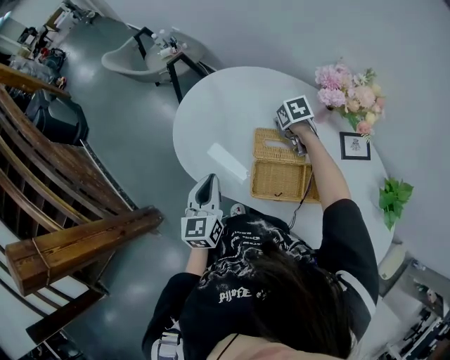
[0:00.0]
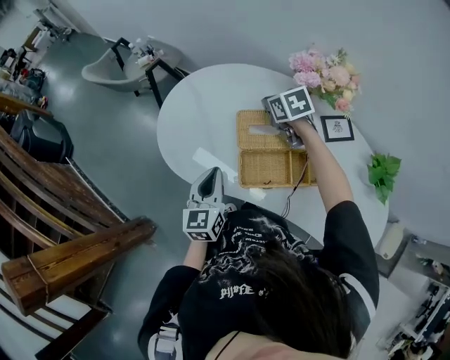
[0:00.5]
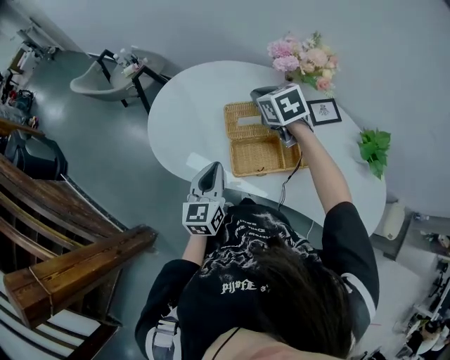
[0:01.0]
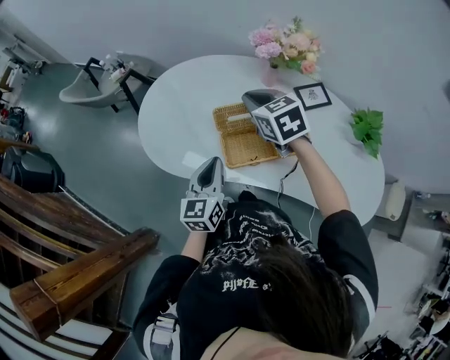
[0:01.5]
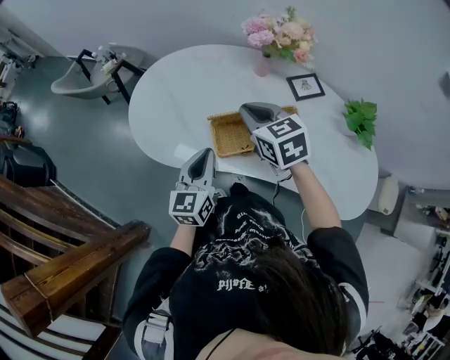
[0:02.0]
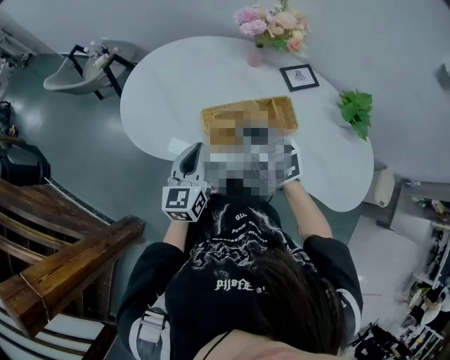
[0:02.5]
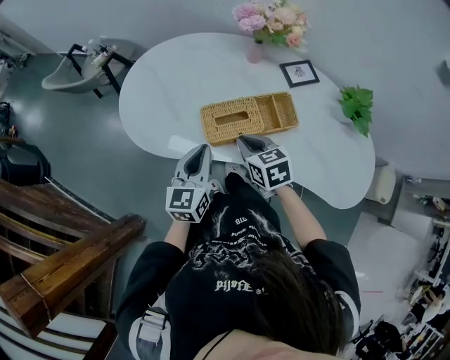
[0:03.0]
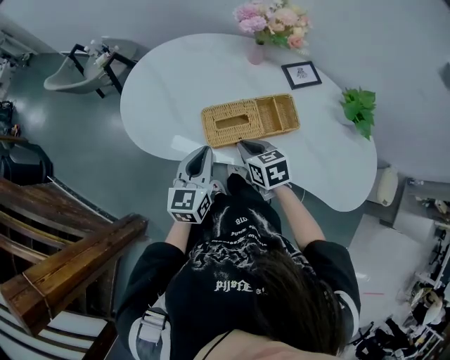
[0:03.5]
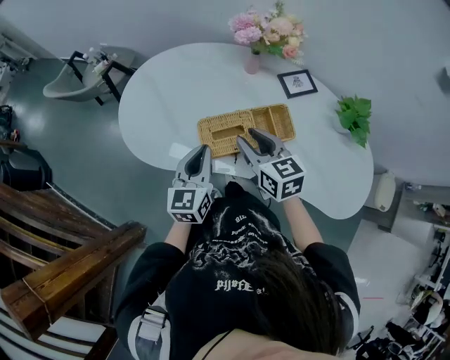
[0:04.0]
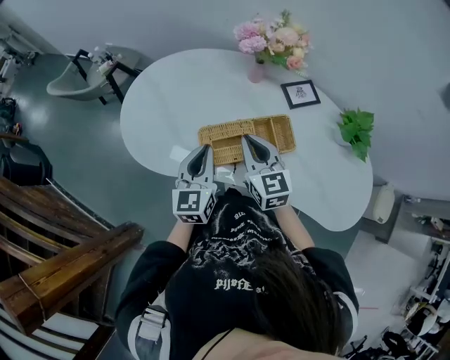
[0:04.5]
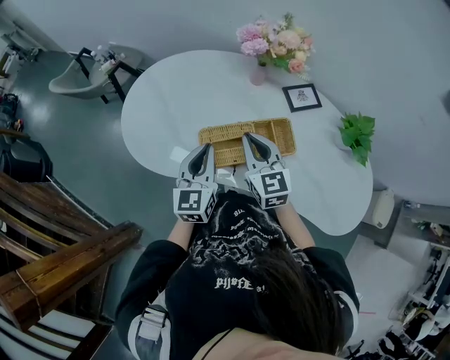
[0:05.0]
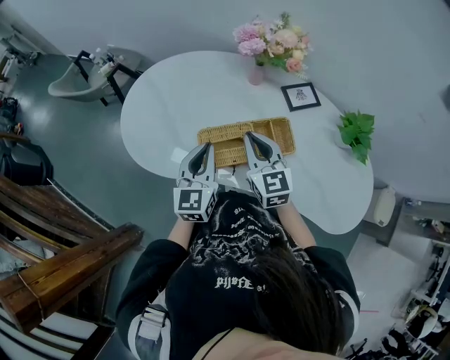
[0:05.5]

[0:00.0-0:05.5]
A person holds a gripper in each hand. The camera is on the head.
0:00.0 to 0:02.0: The left gripper moves roughly 10 cm, and changes its angle by approximately 30 degrees; the right gripper moves roughly 30 cm, and tips its fingers upward by about 30 degrees.
0:02.0 to 0:03.5: The right gripper shifts roughly 20 cm downward and backward.
0:03.5 to 0:05.5: The right gripper shifts some 15 cm upward and forward, rotates approximately 30 degrees, and opens, then closes again. The left gripper goes about 5 cm forward.

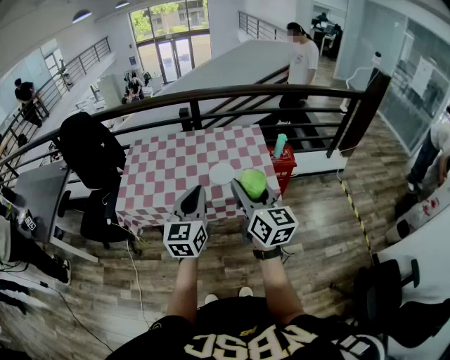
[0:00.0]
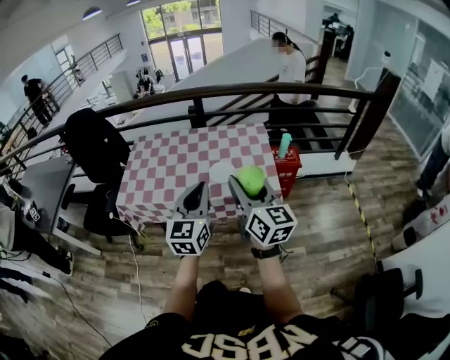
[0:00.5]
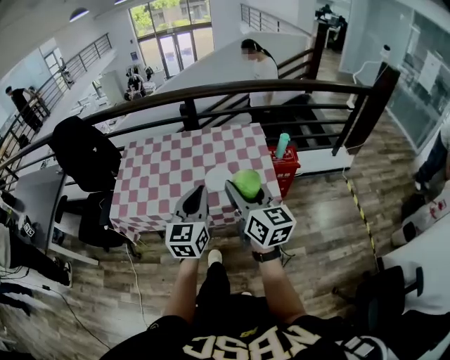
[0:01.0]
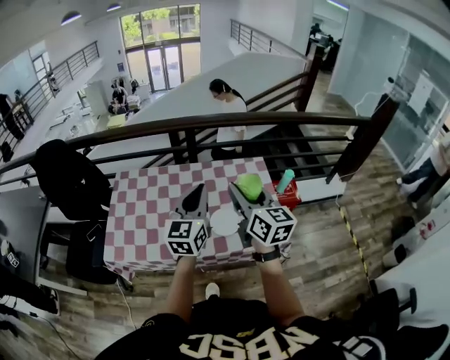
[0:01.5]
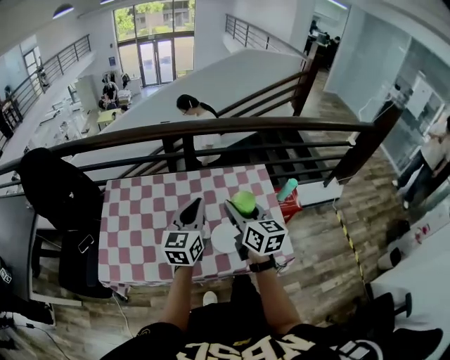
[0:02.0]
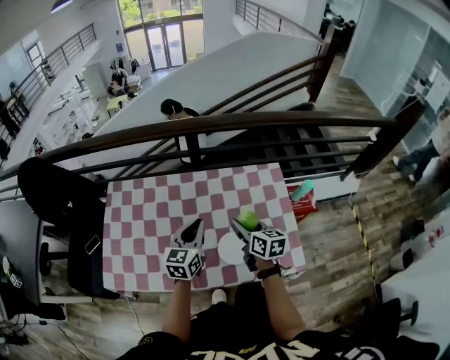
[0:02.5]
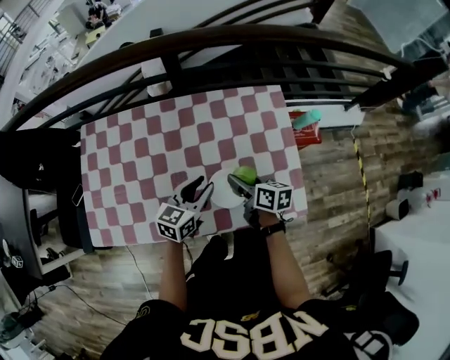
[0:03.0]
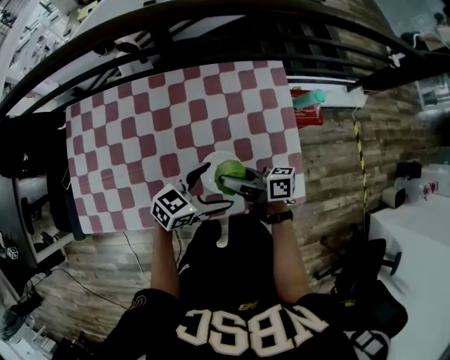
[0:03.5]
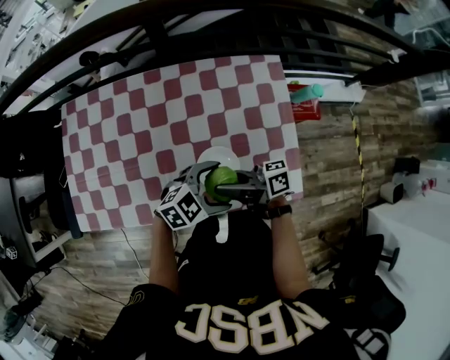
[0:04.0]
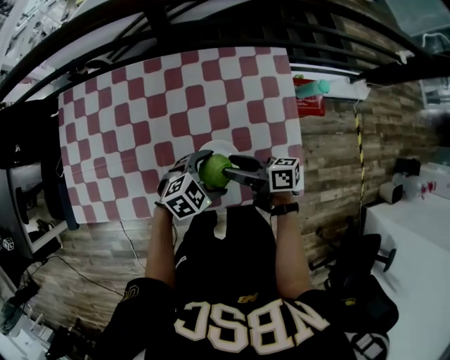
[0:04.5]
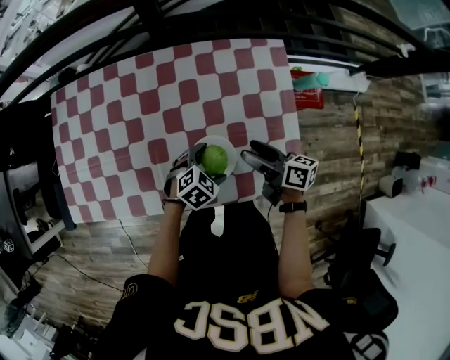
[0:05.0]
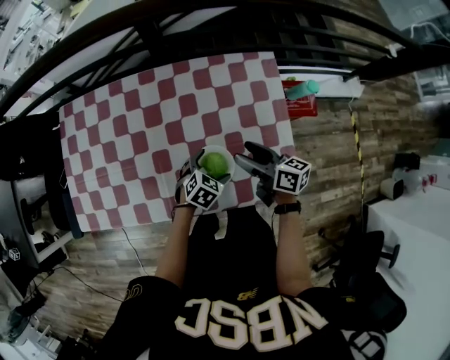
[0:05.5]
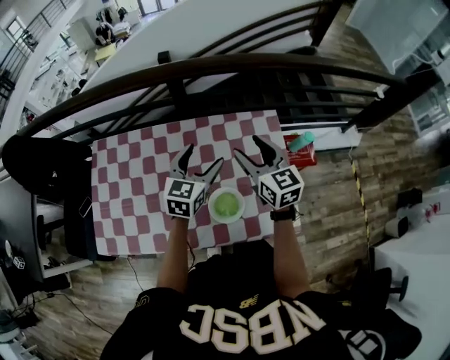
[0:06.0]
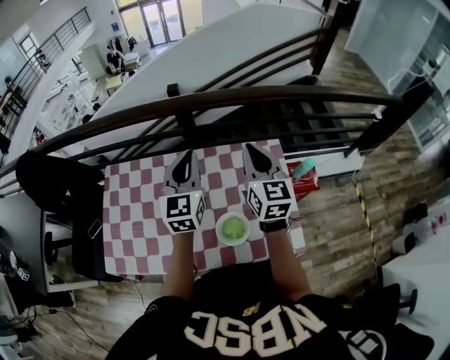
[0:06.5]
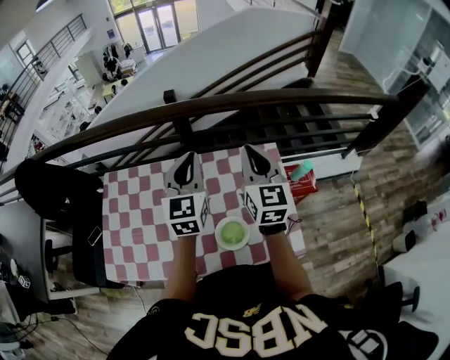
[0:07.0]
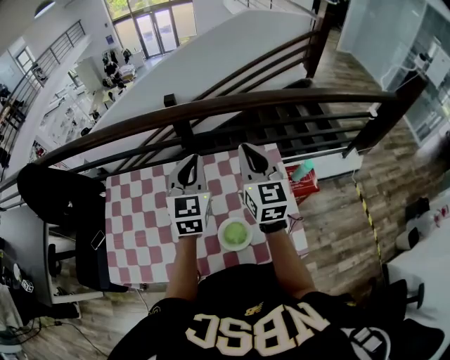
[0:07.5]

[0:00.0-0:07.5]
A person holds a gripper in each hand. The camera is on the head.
0:00.0 to 0:02.0: The two grippers go some 35 cm forward.
0:02.0 to 0:04.0: Both grippers move downward, some 20 cm. The right gripper rotates approximately 70 degrees. The left gripper points its fingers about 30 degrees further downward, and opens its fingers.
0:04.0 to 0:05.5: The right gripper shifts by about 15 cm, changes its angle by some 40 degrees, and opens. Meanwhile the left gripper shifts some 10 cm downward, and turns by approximately 30 degrees.
0:05.5 to 0:07.5: The grippers both shift upward by approximately 35 cm. The right gripper swivels roughly 60 degrees, and closes its fingers; the left gripper angles its fingers upward, by some 50 degrees, and closes its fingers.

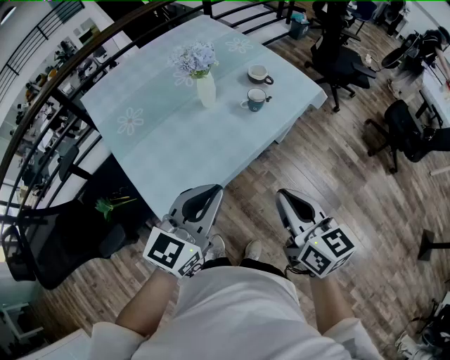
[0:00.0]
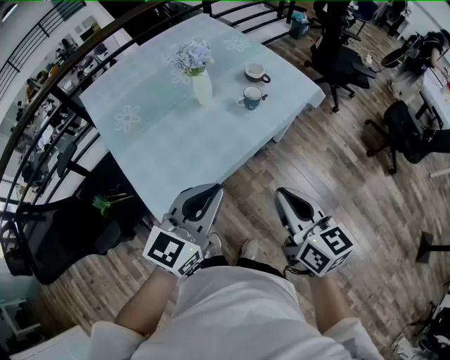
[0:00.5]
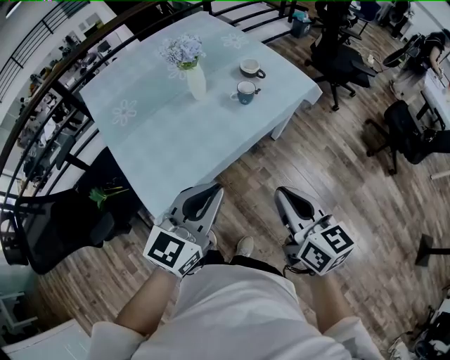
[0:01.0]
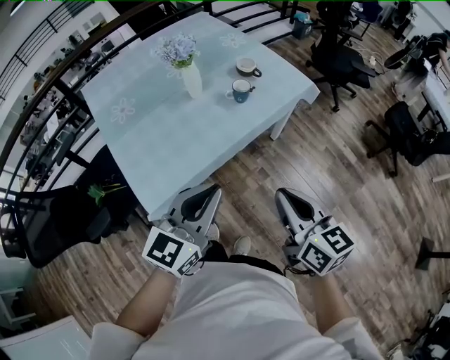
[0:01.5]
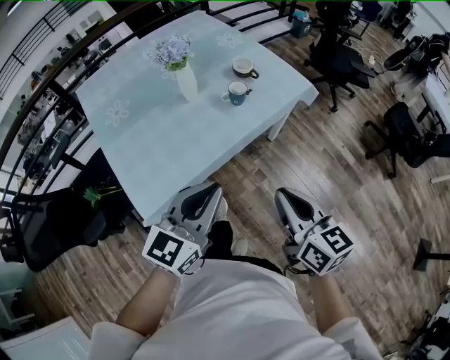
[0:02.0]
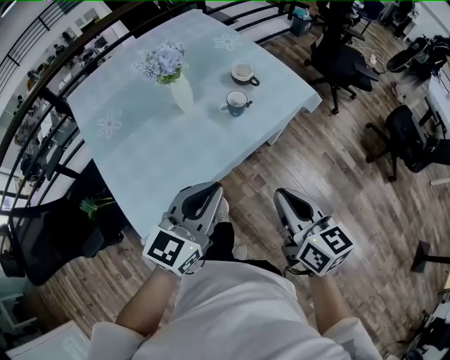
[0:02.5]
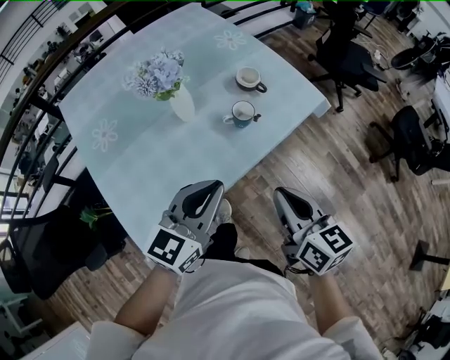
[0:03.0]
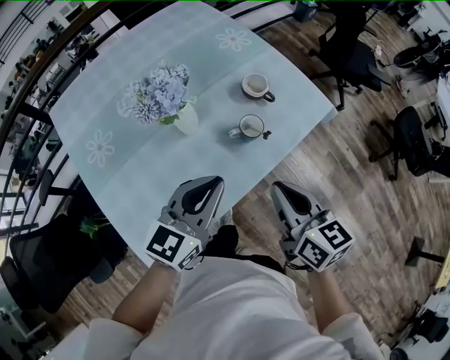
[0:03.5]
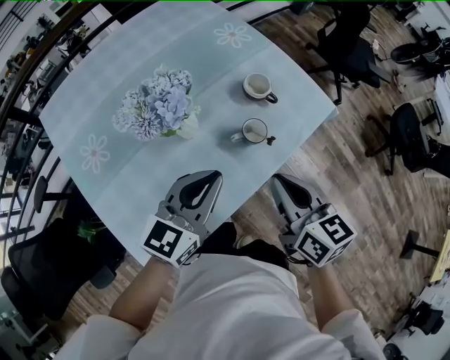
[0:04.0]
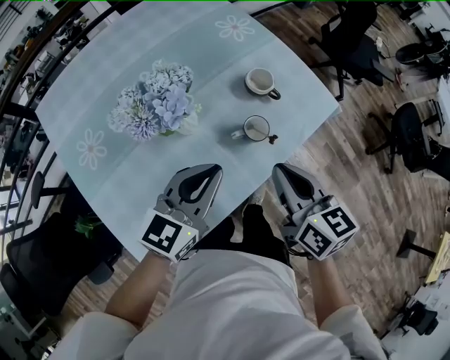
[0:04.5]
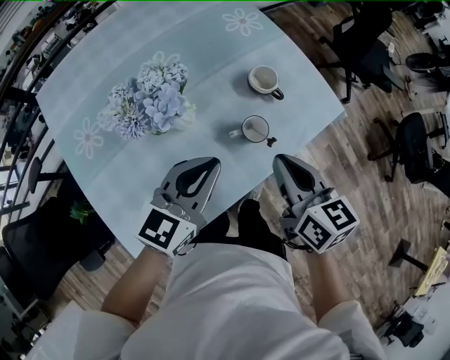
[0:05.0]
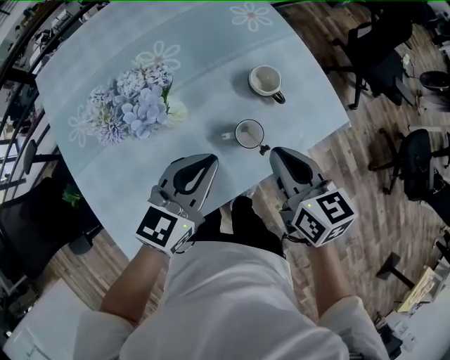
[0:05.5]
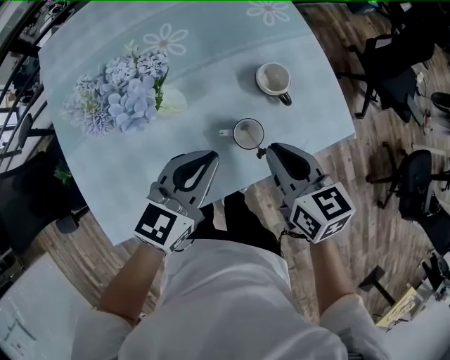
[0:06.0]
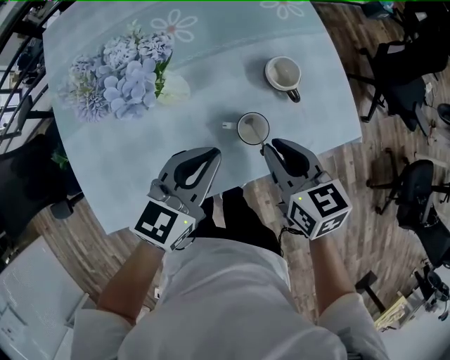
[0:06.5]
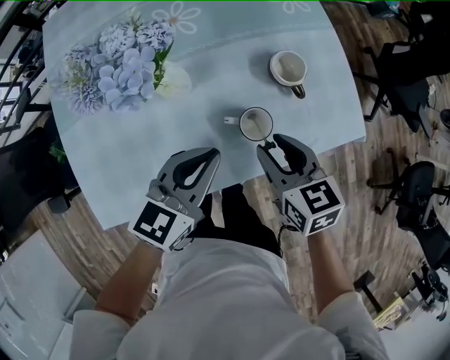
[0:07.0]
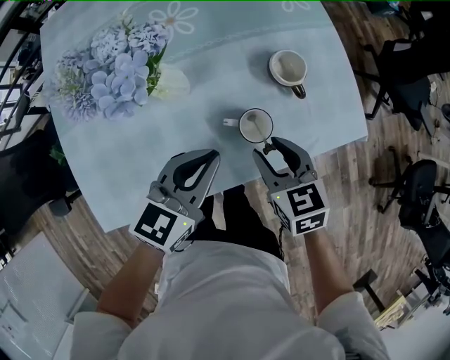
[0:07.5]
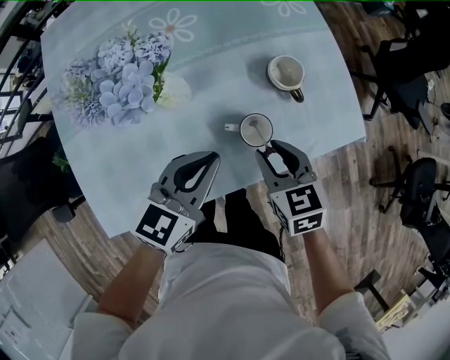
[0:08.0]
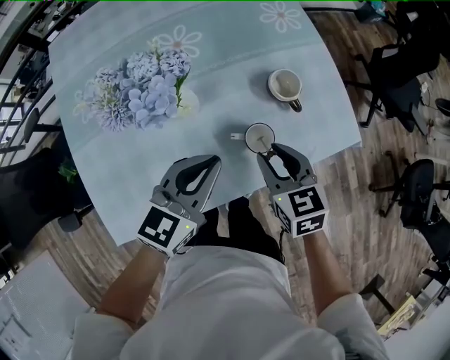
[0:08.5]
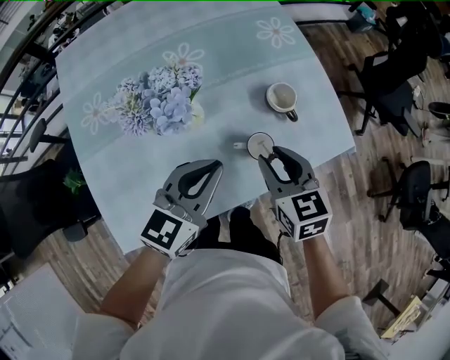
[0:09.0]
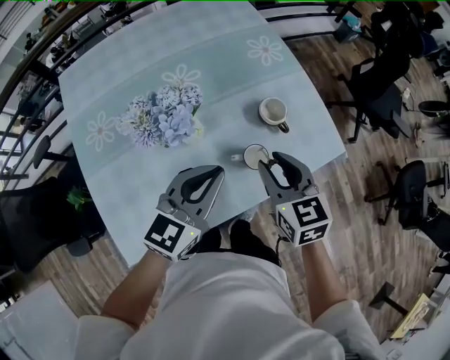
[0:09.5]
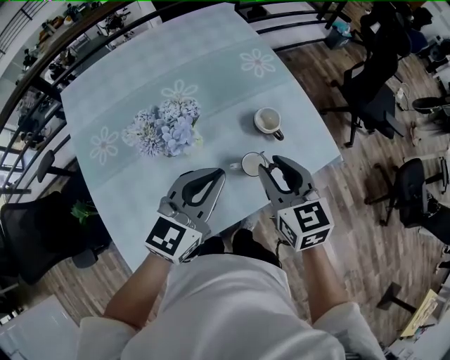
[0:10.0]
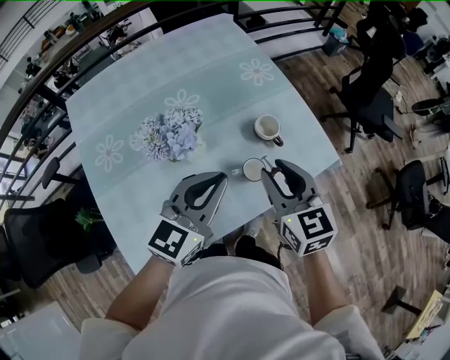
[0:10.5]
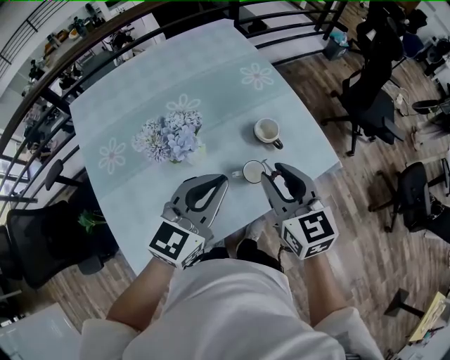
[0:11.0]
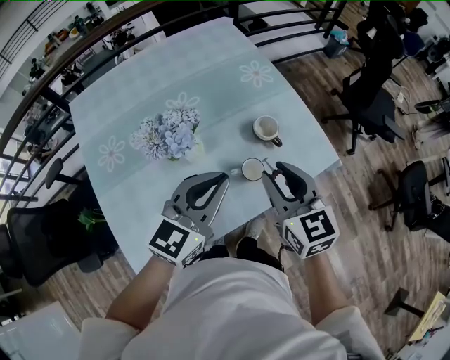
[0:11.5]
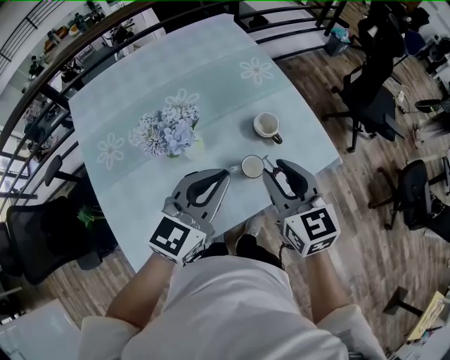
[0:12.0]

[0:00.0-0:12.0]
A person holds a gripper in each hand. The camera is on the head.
0:00.0 to 0:02.0: Both grippers move to the right, about 10 cm.
0:02.0 to 0:04.0: Both grippers travel together forward, approximately 30 cm.
0:04.0 to 0:06.0: Both grippers move forward and downward, approximately 15 cm. The right gripper swivels about 20 degrees.
0:06.0 to 0:08.0: The right gripper goes approximately 10 cm downward, and opens its fingers.
0:08.0 to 0:10.0: The grippers both shift upward by about 15 cm. The right gripper turns by approximately 20 degrees.
0:10.0 to 0:12.0: The grippers move only a little.

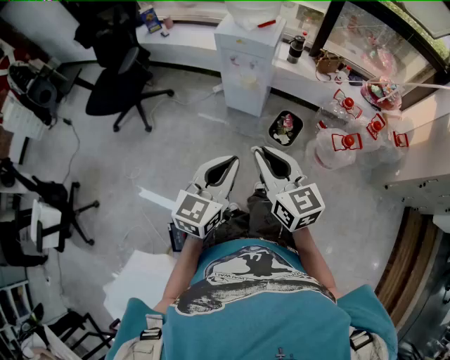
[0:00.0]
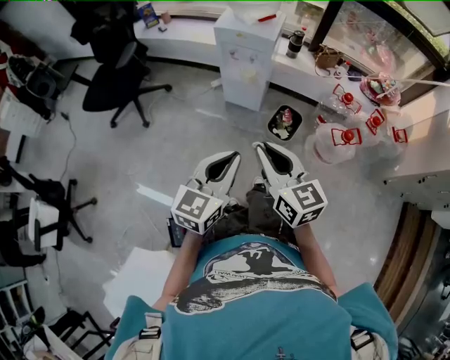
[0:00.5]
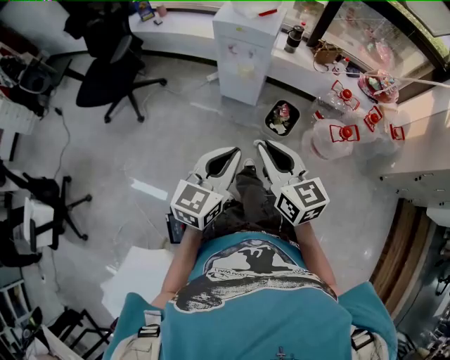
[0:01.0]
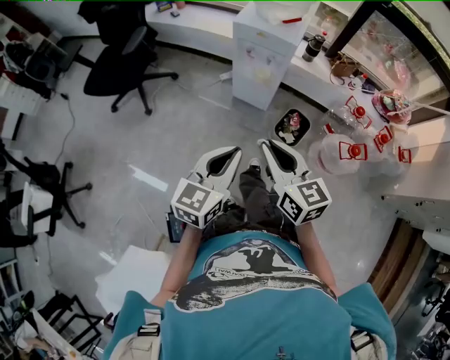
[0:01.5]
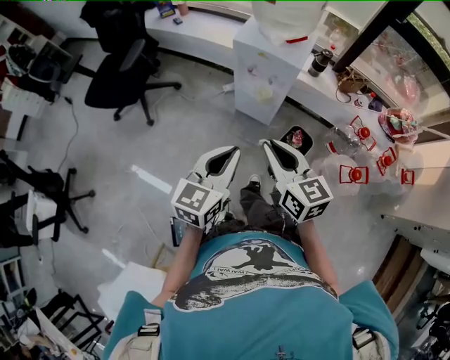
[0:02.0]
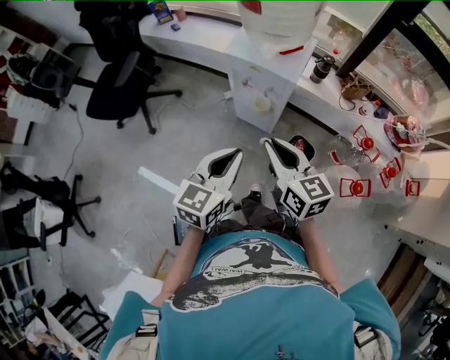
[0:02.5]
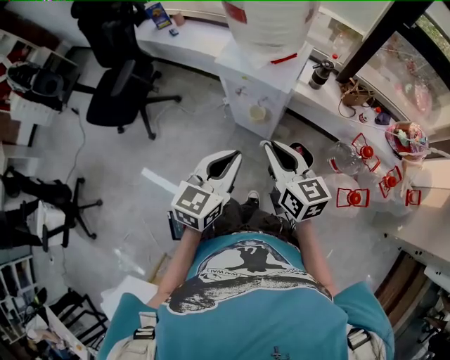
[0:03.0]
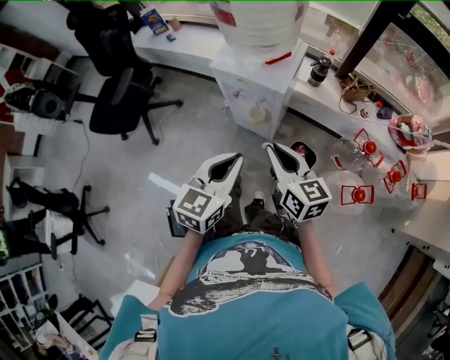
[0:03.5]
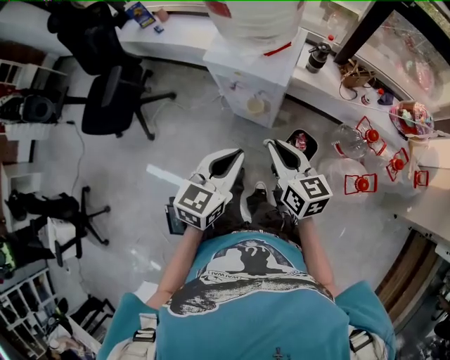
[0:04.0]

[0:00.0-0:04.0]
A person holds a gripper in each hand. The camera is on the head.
0:00.0 to 0:02.0: Both grippers move forward, some 20 cm.
0:02.0 to 0:04.0: The left gripper is displaced forward and to the right by some 15 cm, while the right gripper heads forward, to the right and downward, covering roughly 20 cm.
